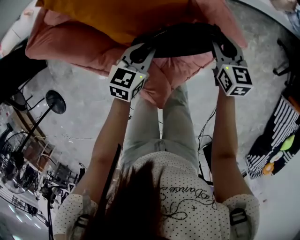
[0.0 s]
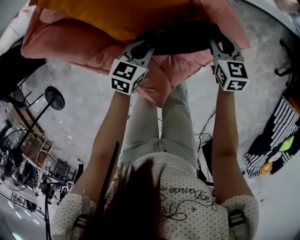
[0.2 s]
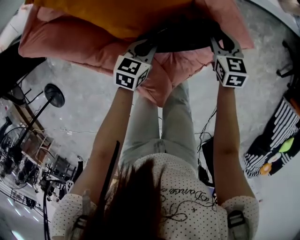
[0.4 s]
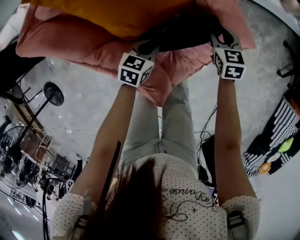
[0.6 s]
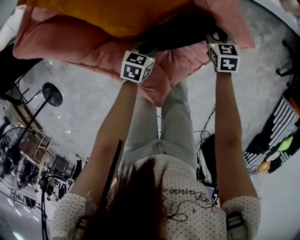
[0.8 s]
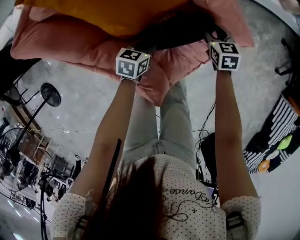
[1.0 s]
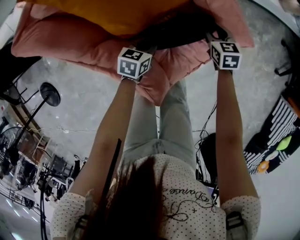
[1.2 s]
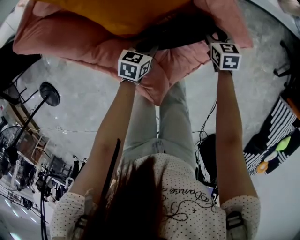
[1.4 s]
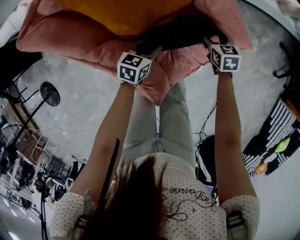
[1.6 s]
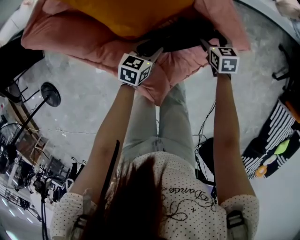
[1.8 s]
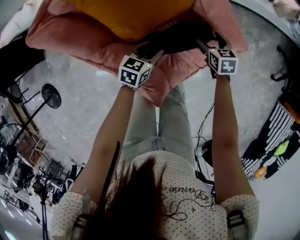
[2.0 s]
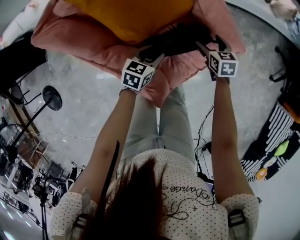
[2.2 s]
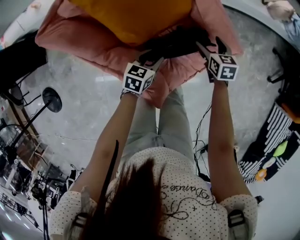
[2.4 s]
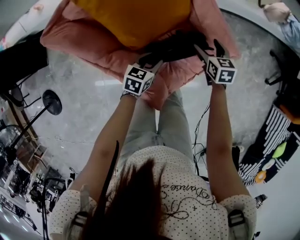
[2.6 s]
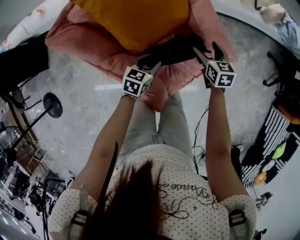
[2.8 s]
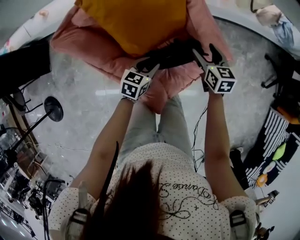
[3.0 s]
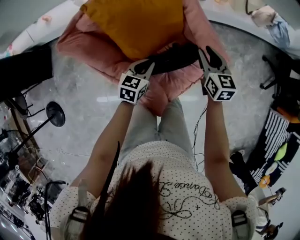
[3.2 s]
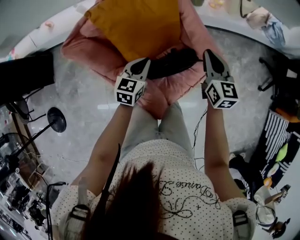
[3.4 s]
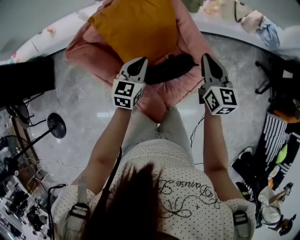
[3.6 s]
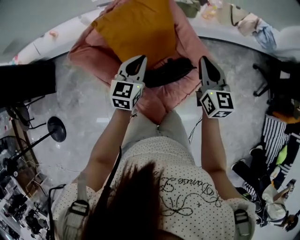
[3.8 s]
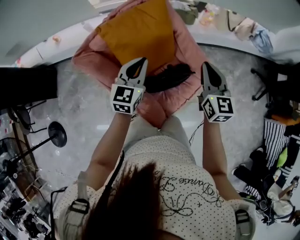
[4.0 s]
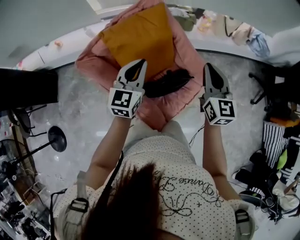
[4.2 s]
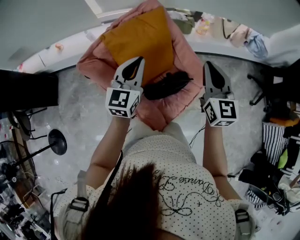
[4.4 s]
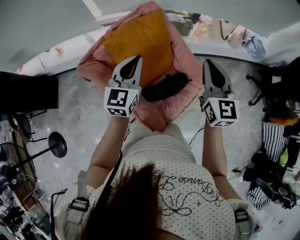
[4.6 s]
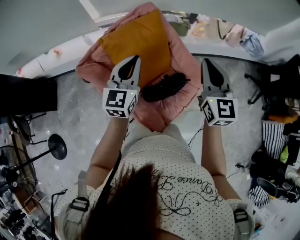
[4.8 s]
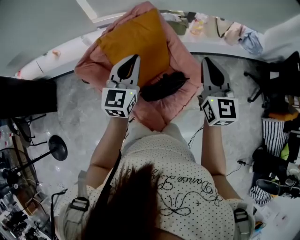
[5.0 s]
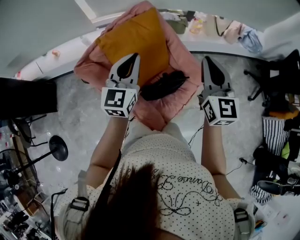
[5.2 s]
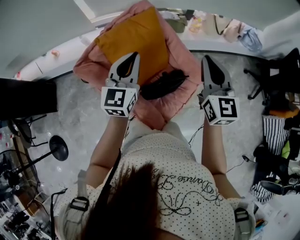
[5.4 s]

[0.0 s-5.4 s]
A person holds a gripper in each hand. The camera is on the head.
0.0 to 1.4 s: The grippers both shift downward by some 15 cm.
1.4 to 2.8 s: The two grippers go approximately 10 cm upward. The right gripper opens, while the left gripper opens its fingers.
2.8 to 4.0 s: The grippers both shift upward by some 30 cm. The left gripper rotates approximately 40 degrees, and closes up. Meanwhile the right gripper rotates roughly 30 degrees, and closes its fingers.
4.0 to 5.4 s: Both grippers travel together upward, approximately 10 cm.

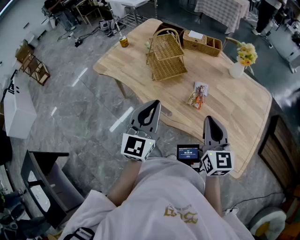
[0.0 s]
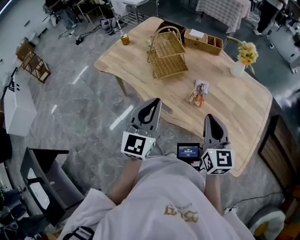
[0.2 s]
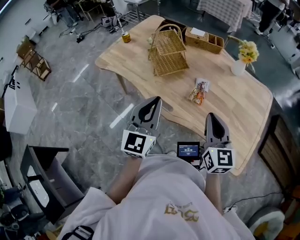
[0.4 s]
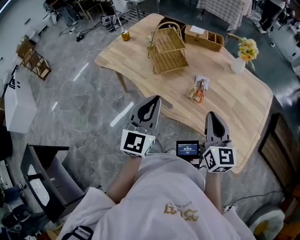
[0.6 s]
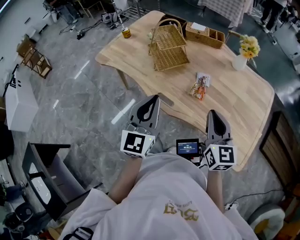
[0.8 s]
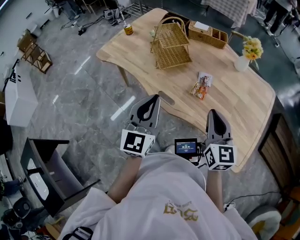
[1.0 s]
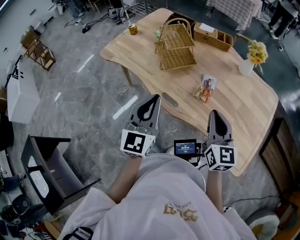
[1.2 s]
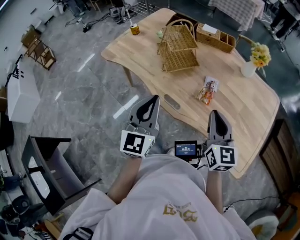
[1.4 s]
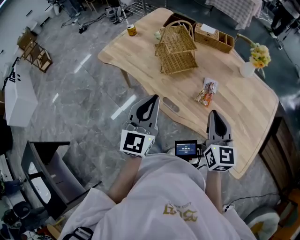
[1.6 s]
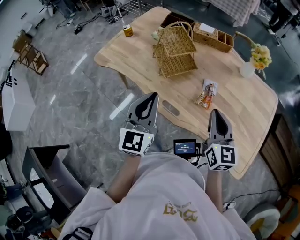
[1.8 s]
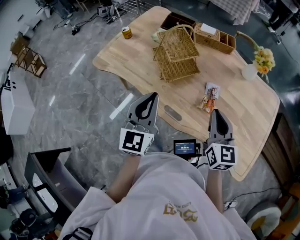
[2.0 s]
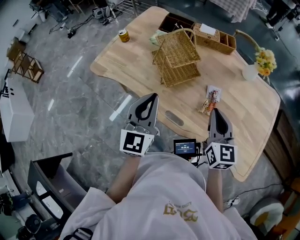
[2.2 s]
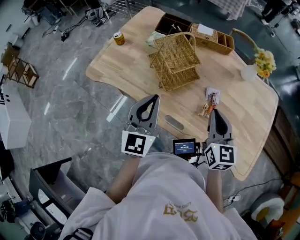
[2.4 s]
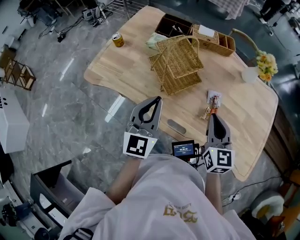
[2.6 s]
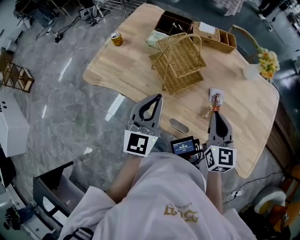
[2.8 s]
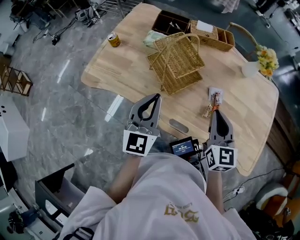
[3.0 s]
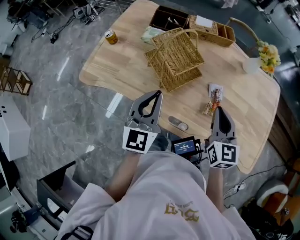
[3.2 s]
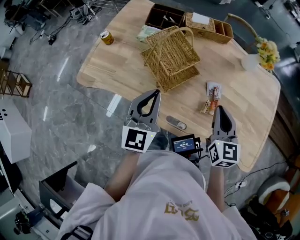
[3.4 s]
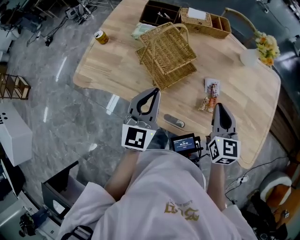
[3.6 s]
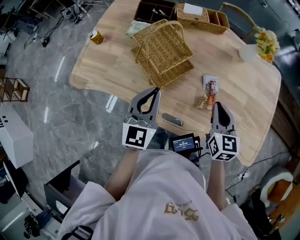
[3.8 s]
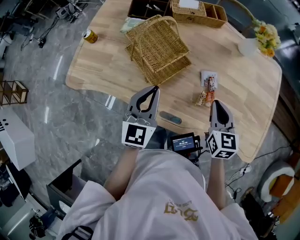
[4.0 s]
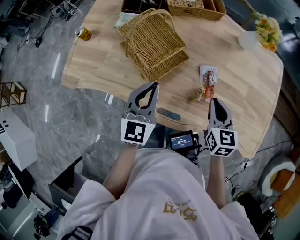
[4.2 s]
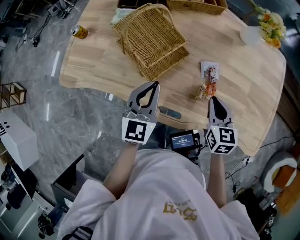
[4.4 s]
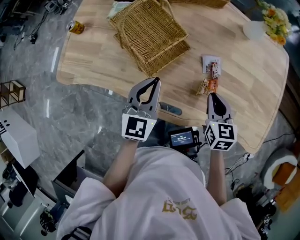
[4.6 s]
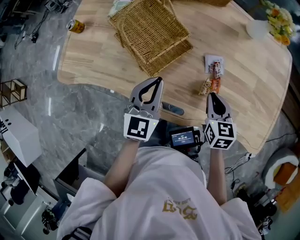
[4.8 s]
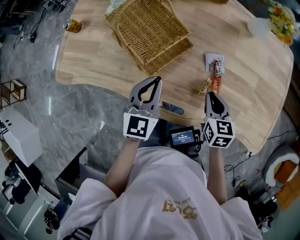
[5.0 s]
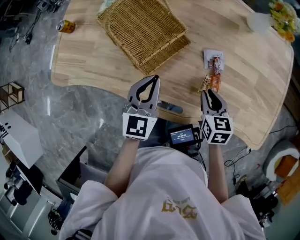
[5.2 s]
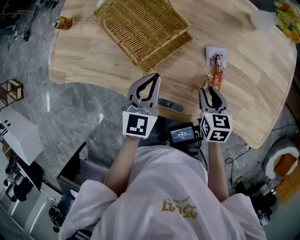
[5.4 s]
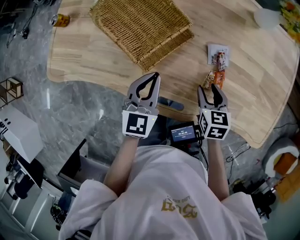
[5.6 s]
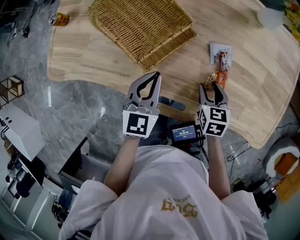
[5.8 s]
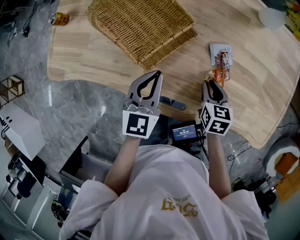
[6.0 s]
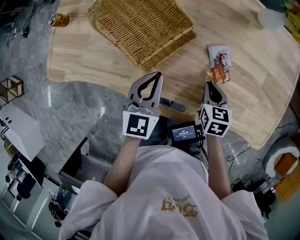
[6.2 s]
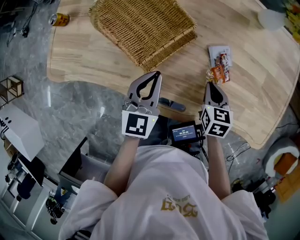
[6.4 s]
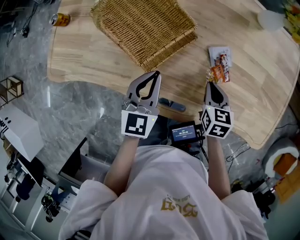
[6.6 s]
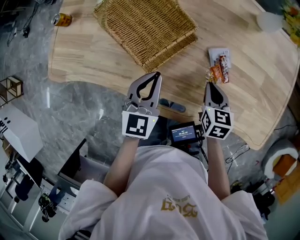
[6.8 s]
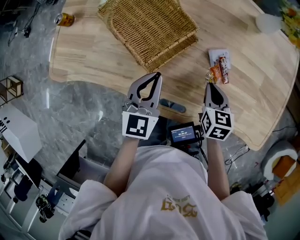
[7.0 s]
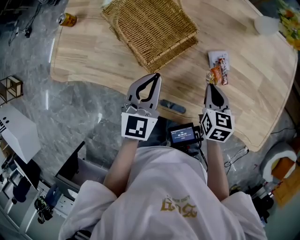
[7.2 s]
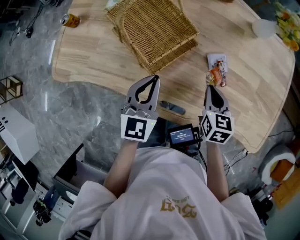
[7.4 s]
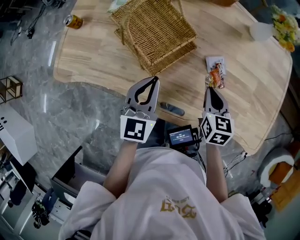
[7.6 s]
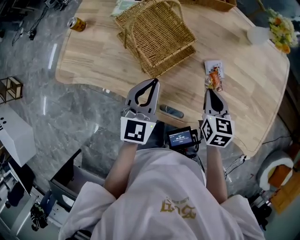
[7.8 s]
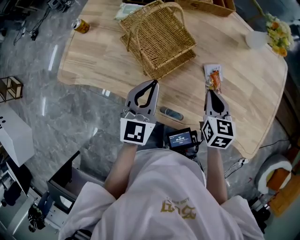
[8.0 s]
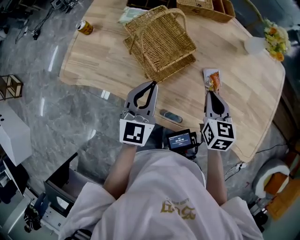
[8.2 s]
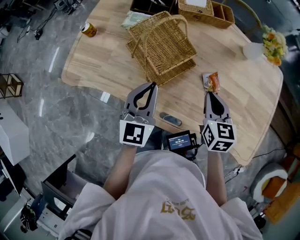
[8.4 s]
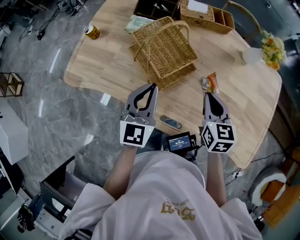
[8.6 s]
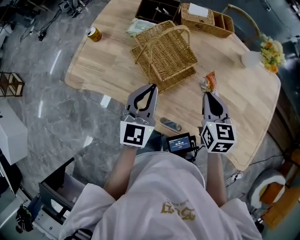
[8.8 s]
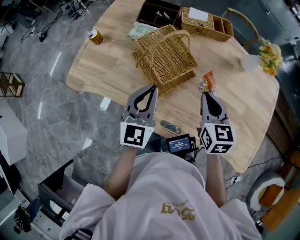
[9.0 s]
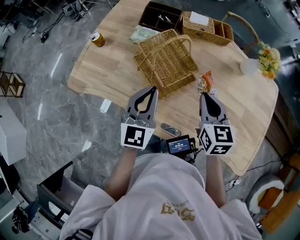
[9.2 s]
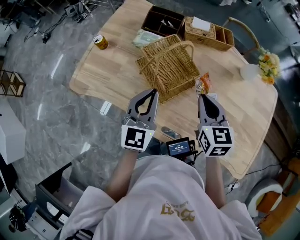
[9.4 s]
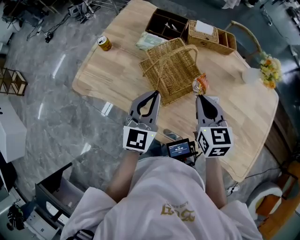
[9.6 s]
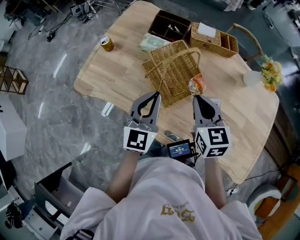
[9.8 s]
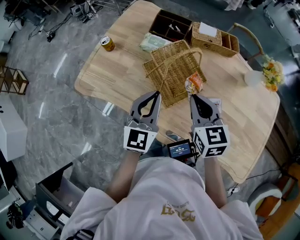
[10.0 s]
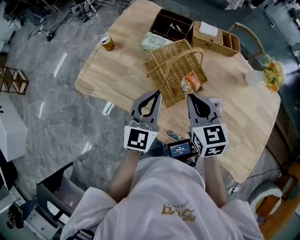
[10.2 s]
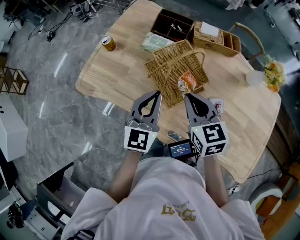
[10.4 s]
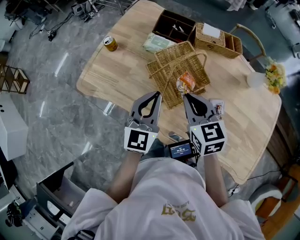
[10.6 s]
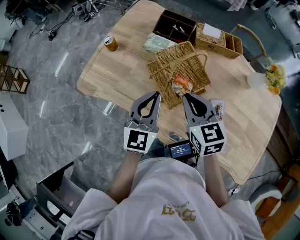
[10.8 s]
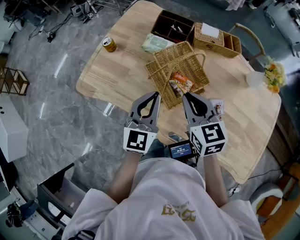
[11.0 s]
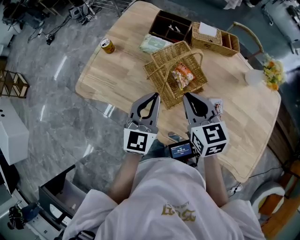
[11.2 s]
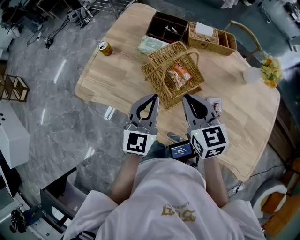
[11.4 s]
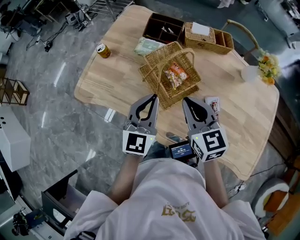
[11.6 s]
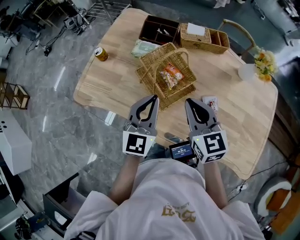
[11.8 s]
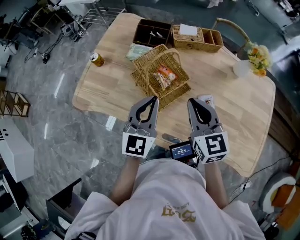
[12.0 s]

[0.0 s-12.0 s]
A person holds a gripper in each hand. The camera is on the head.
0.0 to 1.6 s: The left gripper ends up approximately 5 cm from where it was.
1.6 to 3.0 s: The grippers both shift forward and to the left by roughly 15 cm.
3.0 to 4.4 s: The left gripper shifts some 15 cm downward, to the right and forward, while the right gripper moves downward and to the right, approximately 15 cm, and rotates roughly 20 degrees.
4.4 to 6.0 s: The right gripper heads downward, covering approximately 15 cm, and opens its fingers; the left gripper travels downward by about 10 cm.
6.0 to 7.6 s: The right gripper moves upward, about 10 cm, and closes, while the left gripper goes some 5 cm upward.
7.6 to 9.0 s: The left gripper moves upward, roughly 10 cm, while the right gripper moves upward and to the left, some 15 cm.
9.0 to 10.4 s: The right gripper moves to the left, some 10 cm.
10.4 to 12.0 s: The grippers both shift to the right by approximately 5 cm.

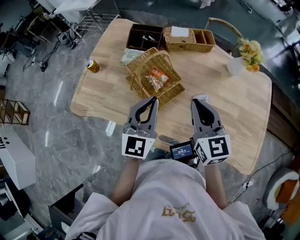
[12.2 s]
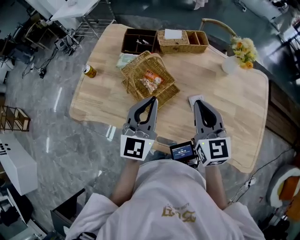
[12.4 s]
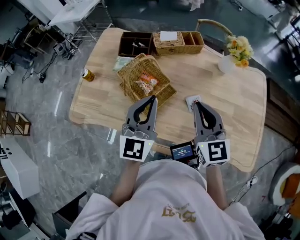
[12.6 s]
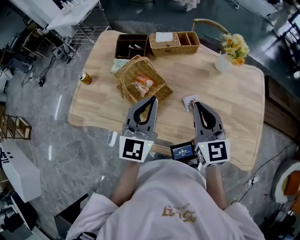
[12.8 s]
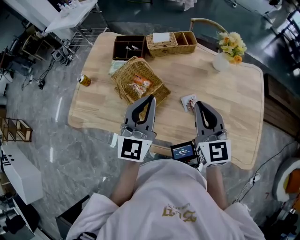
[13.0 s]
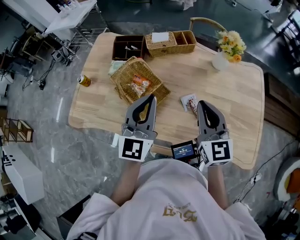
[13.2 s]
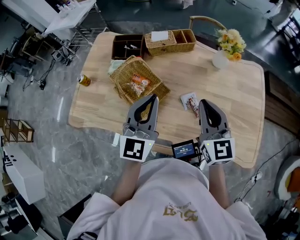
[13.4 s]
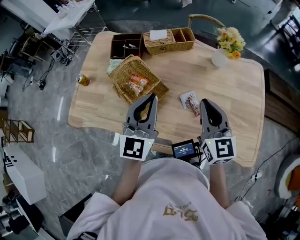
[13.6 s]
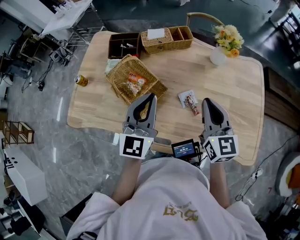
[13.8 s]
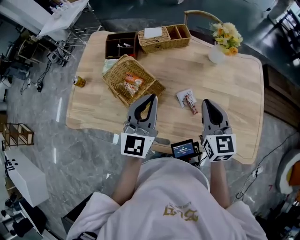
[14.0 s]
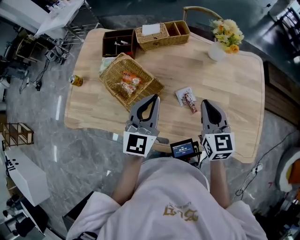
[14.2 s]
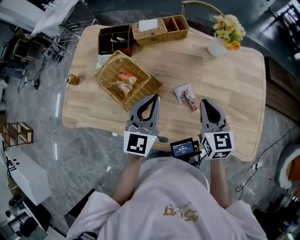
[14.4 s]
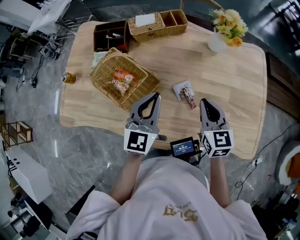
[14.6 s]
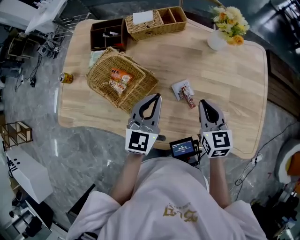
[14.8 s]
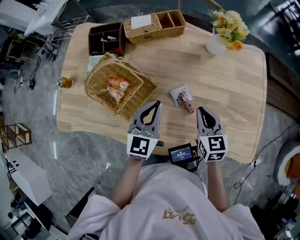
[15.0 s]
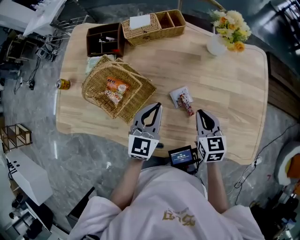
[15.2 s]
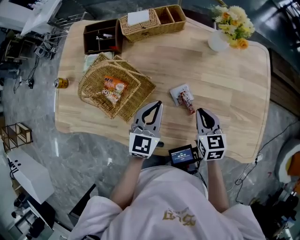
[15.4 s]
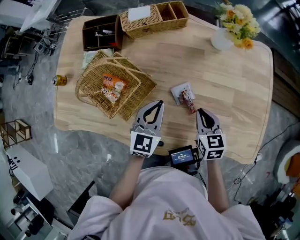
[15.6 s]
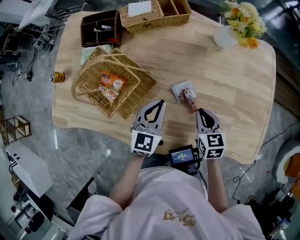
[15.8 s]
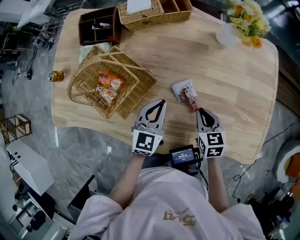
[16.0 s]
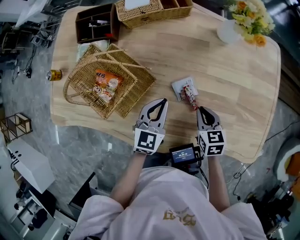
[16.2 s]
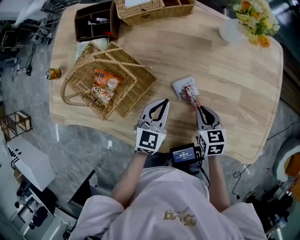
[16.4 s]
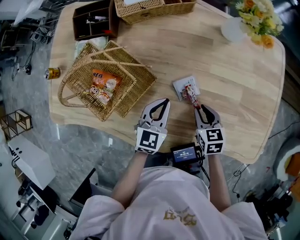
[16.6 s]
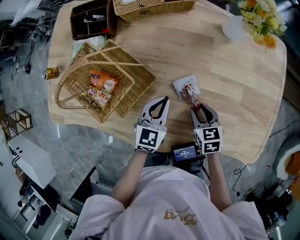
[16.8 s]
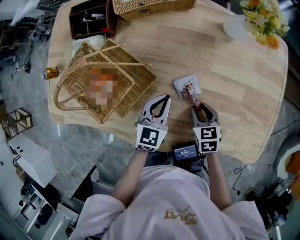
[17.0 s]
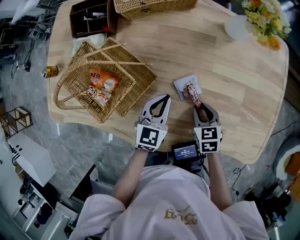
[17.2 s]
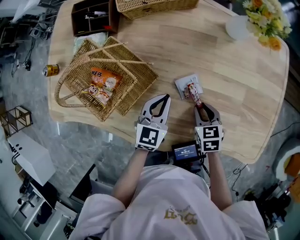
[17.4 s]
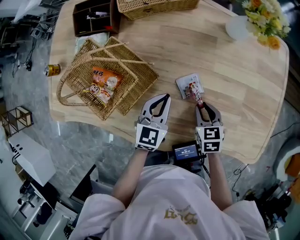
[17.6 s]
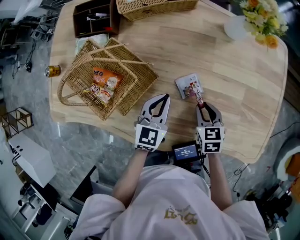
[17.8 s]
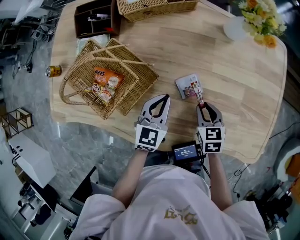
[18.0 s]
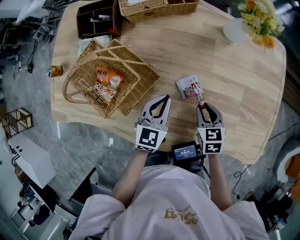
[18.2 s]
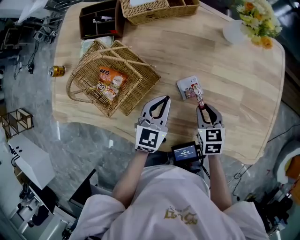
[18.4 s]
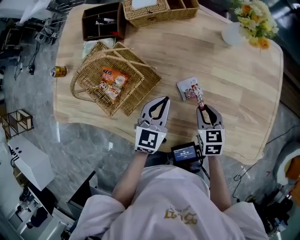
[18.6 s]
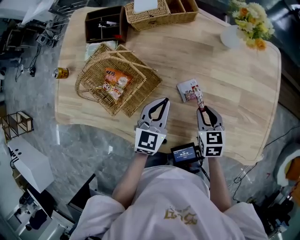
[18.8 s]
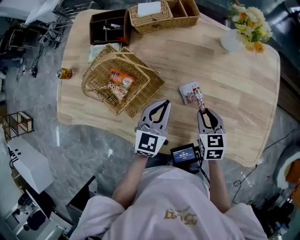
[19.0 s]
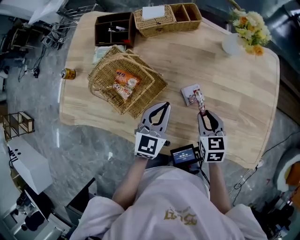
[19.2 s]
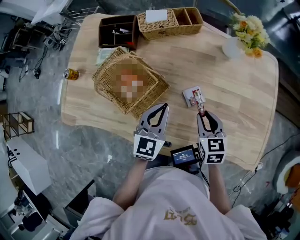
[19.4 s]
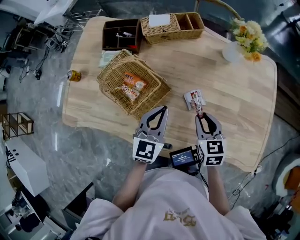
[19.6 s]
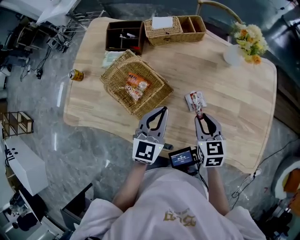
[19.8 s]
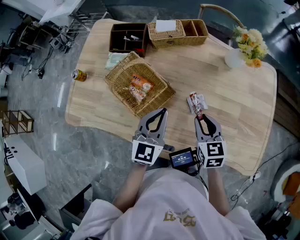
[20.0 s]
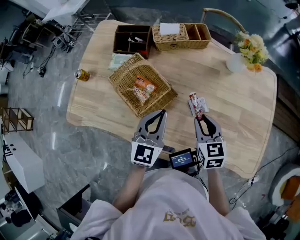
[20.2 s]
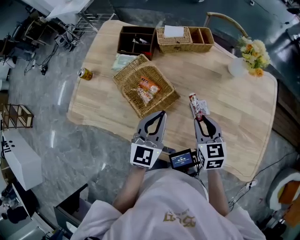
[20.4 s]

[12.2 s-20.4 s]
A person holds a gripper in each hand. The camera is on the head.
12.2 to 13.8 s: The left gripper goes approximately 10 cm to the right. Meanwhile the right gripper is displaced to the right by roughly 15 cm.
13.8 to 15.4 s: The two grippers go some 20 cm downward. The right gripper turns by roughly 30 degrees.
15.4 to 17.2 s: The grippers both shift downward by about 10 cm. The right gripper opens its fingers.
17.2 to 18.8 s: Both grippers travel together upward, about 5 cm.
18.8 to 20.4 s: Both grippers travel together upward and to the left, approximately 15 cm.
